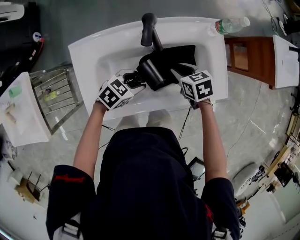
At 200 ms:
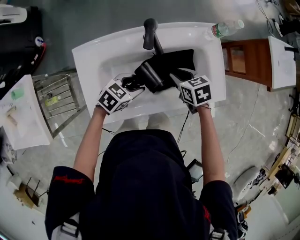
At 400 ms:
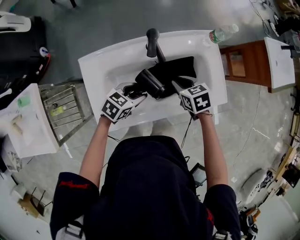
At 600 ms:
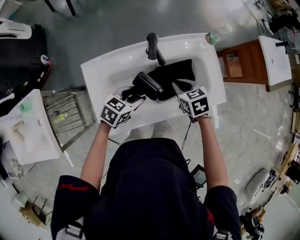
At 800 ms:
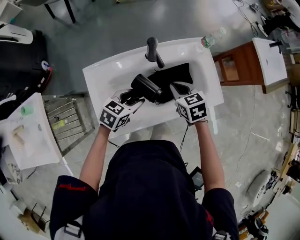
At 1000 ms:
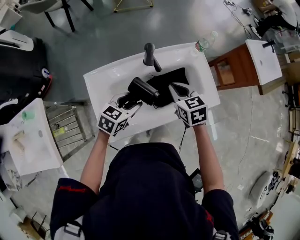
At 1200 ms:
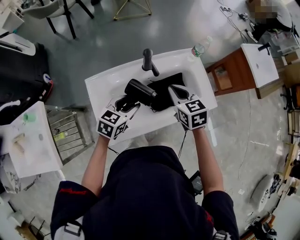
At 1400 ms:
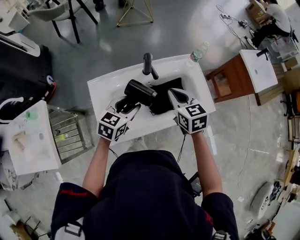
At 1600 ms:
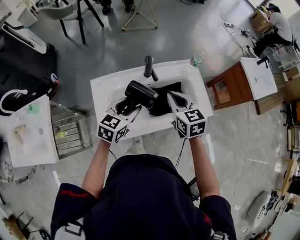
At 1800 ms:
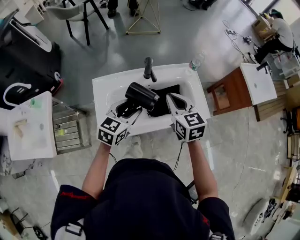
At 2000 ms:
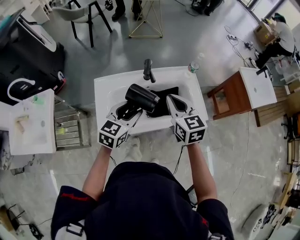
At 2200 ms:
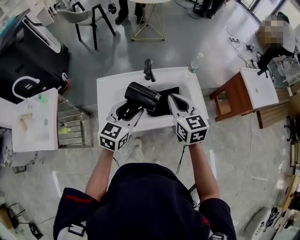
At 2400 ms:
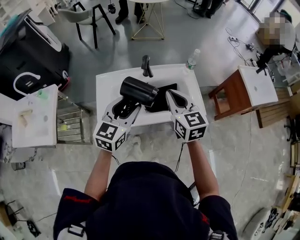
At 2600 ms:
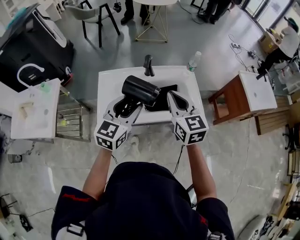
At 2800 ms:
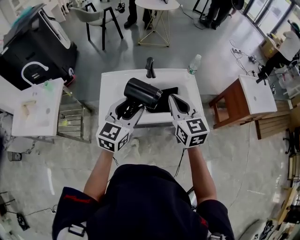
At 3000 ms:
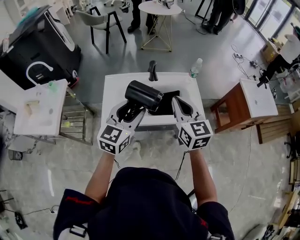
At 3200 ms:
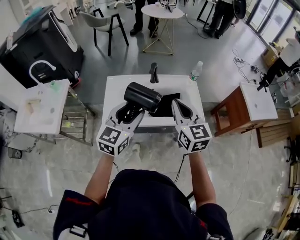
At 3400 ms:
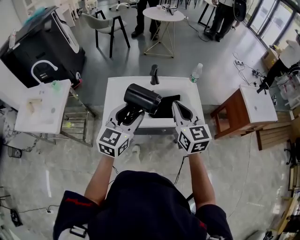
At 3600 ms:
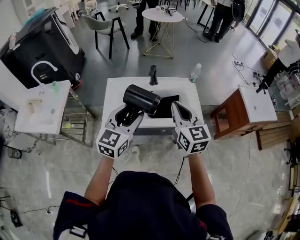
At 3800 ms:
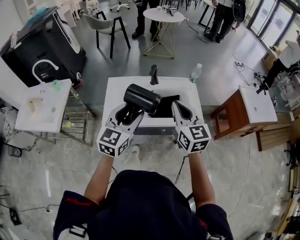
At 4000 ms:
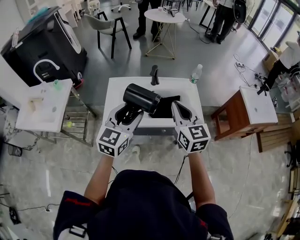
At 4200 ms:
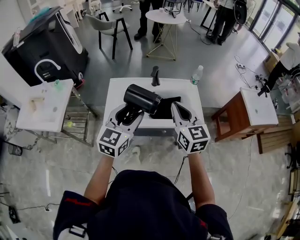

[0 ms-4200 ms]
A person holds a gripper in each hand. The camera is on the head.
0 ms to 1400 ms: The two grippers go some 20 cm upward. The left gripper changes its angle by roughly 30 degrees. Meanwhile the right gripper turns by some 30 degrees.
1400 ms to 2800 ms: The left gripper goes roughly 25 cm upward, backward and to the right, and swivels some 30 degrees; the right gripper is displaced upward and backward by roughly 20 cm, and swivels some 20 degrees.
2800 ms to 4200 ms: The left gripper ends up about 5 cm from where it was.

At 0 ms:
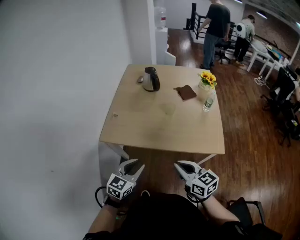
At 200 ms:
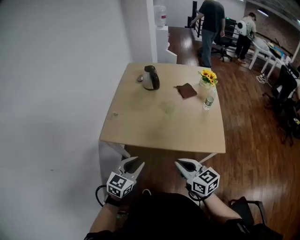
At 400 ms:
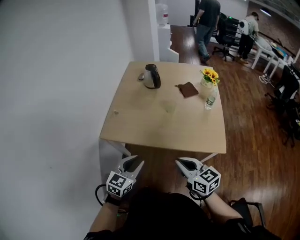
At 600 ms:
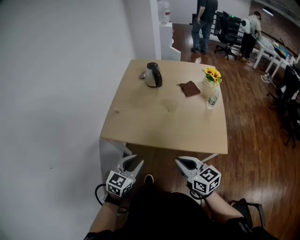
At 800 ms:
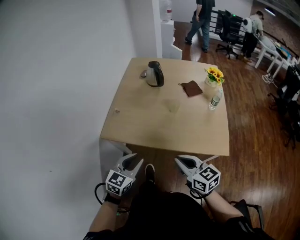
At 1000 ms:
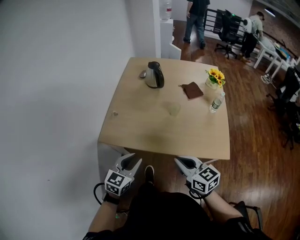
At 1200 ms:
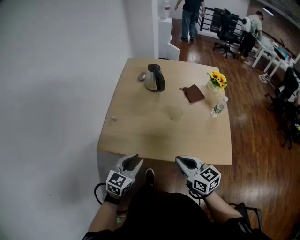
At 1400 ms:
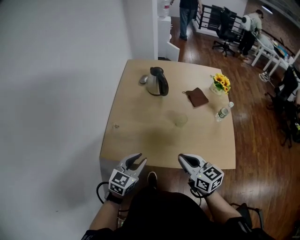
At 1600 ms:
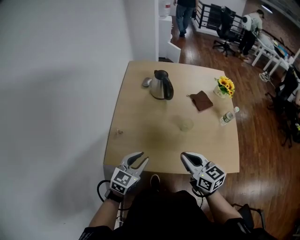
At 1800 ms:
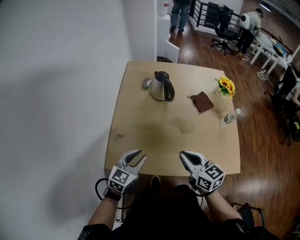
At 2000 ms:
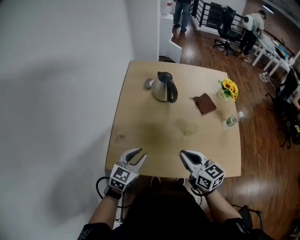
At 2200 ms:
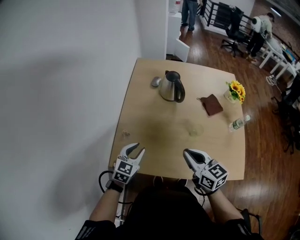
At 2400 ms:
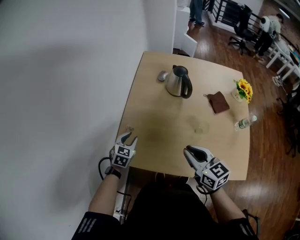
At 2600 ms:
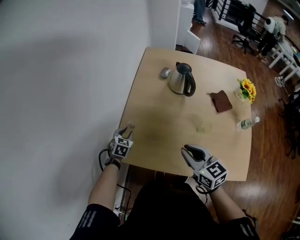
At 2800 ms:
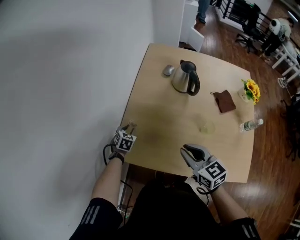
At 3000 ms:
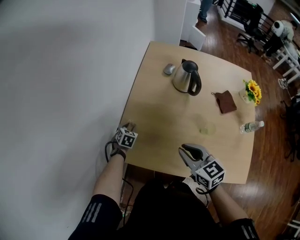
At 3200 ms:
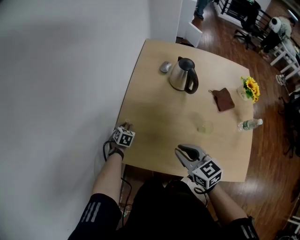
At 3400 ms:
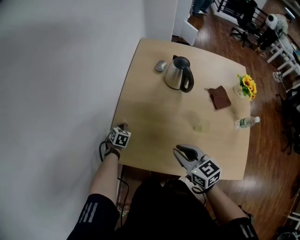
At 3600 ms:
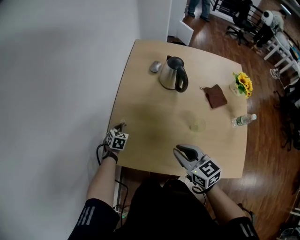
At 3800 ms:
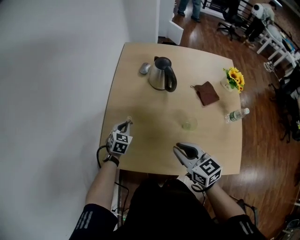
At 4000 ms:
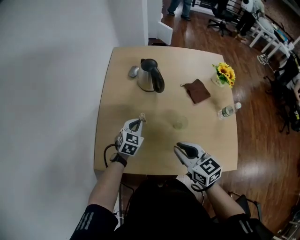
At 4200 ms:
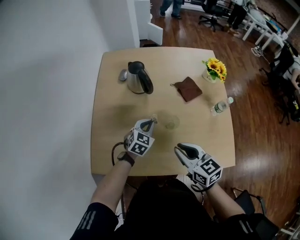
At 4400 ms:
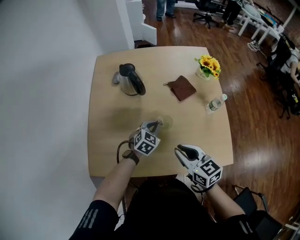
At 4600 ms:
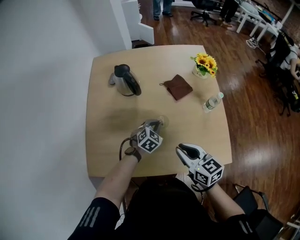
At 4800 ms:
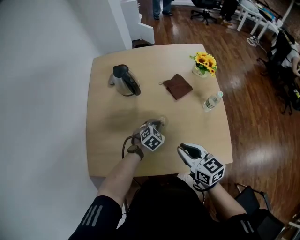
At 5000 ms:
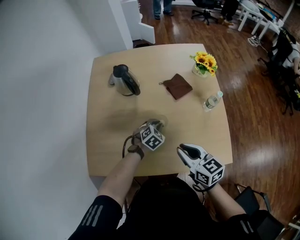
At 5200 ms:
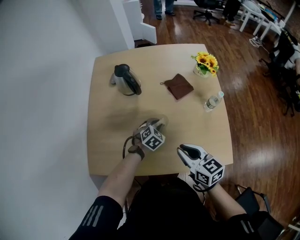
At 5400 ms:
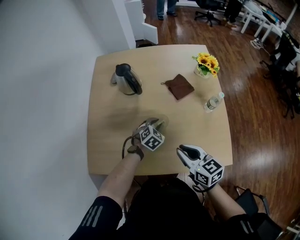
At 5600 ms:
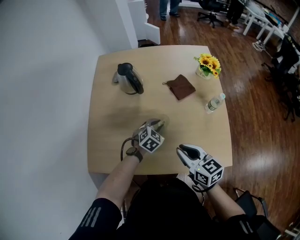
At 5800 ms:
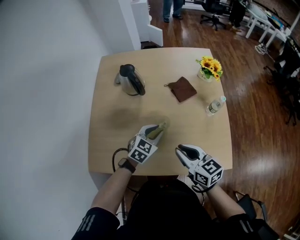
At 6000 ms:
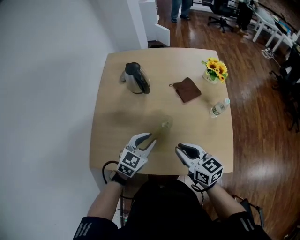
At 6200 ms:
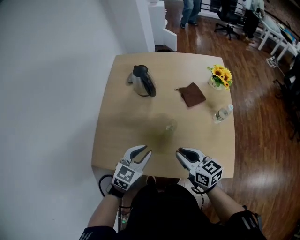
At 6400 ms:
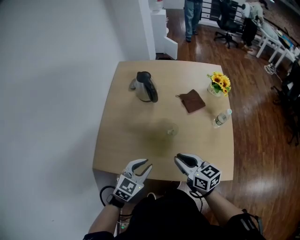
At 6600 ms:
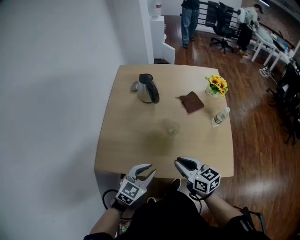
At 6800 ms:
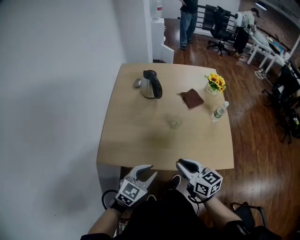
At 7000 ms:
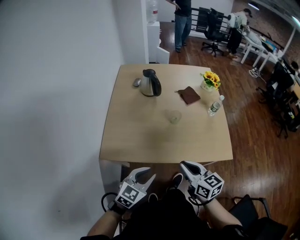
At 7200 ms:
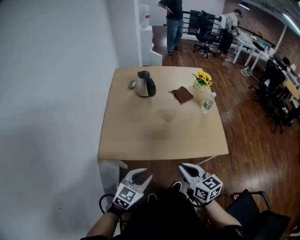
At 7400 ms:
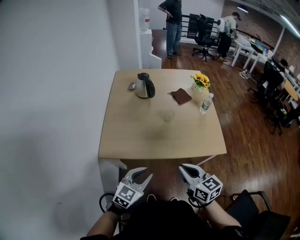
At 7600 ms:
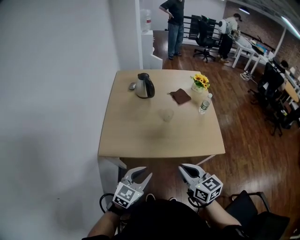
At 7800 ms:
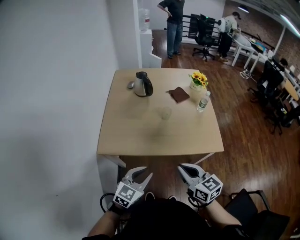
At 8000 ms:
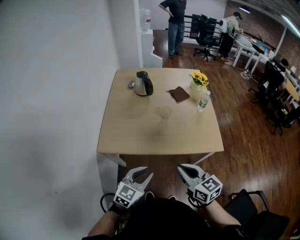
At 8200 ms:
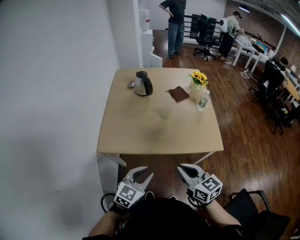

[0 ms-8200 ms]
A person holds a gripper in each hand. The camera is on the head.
0 ms to 1600 ms: The grippers both shift forward by some 25 cm.
1600 ms to 3200 ms: The right gripper ends up roughly 15 cm from where it was. Meanwhile the left gripper moves about 40 cm, and points its fingers approximately 30 degrees further downward.
3200 ms to 5000 ms: The right gripper moves about 25 cm, and turns by some 20 degrees. Meanwhile the left gripper shifts by about 50 cm, and rotates approximately 40 degrees.
5000 ms to 6600 ms: The left gripper heads backward, upward and to the left, covering approximately 30 cm, and swivels roughly 30 degrees; the right gripper heads to the left and backward, covering about 10 cm.
6600 ms to 8200 ms: The two grippers go about 25 cm backward.

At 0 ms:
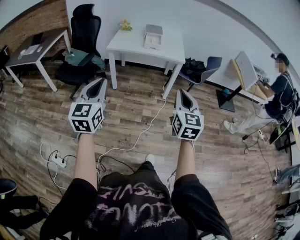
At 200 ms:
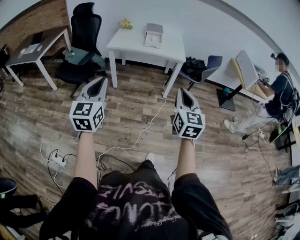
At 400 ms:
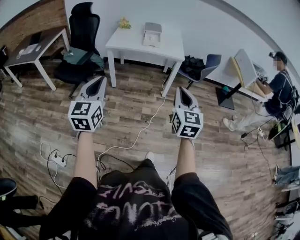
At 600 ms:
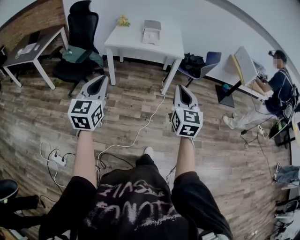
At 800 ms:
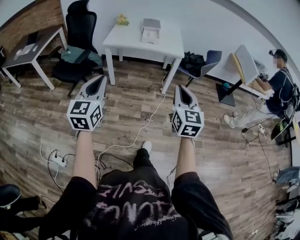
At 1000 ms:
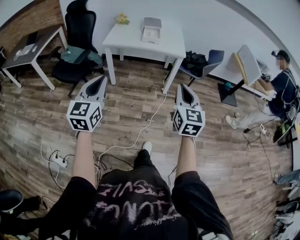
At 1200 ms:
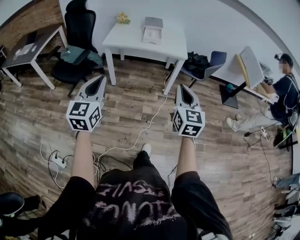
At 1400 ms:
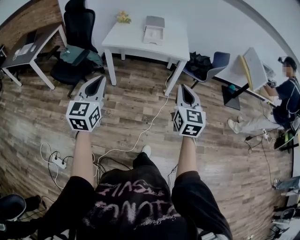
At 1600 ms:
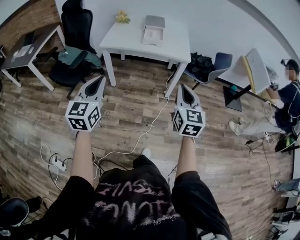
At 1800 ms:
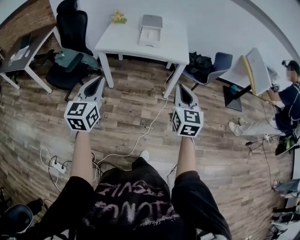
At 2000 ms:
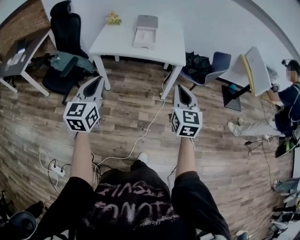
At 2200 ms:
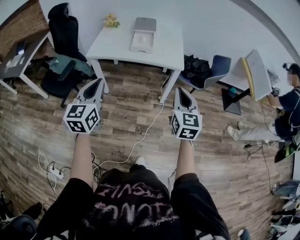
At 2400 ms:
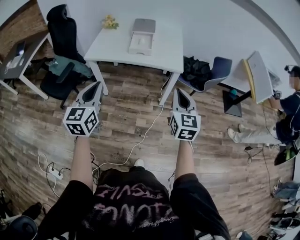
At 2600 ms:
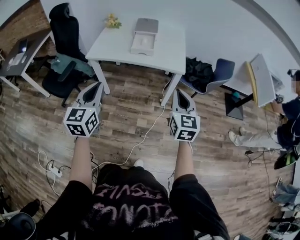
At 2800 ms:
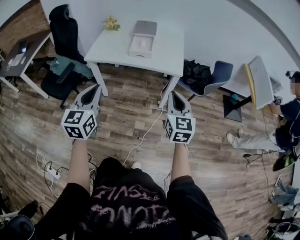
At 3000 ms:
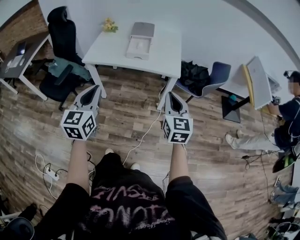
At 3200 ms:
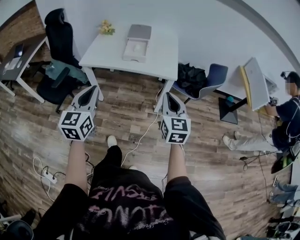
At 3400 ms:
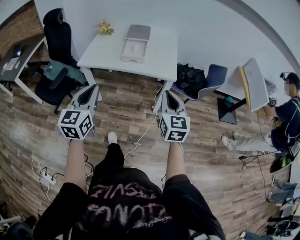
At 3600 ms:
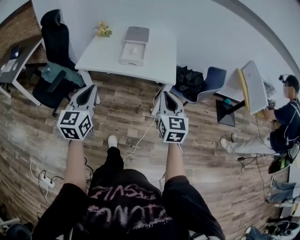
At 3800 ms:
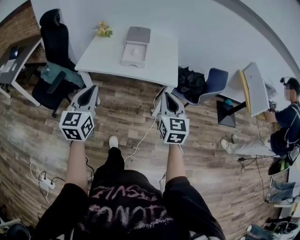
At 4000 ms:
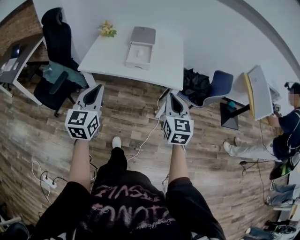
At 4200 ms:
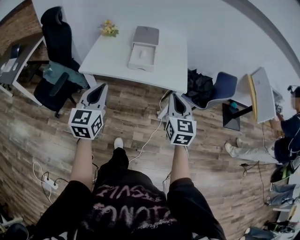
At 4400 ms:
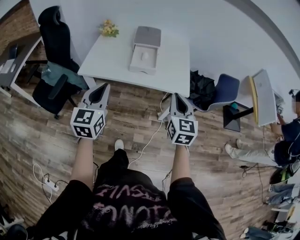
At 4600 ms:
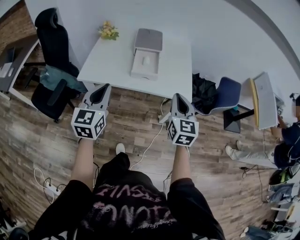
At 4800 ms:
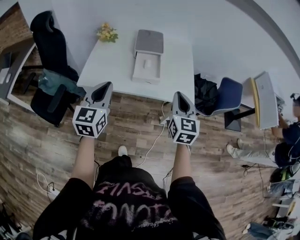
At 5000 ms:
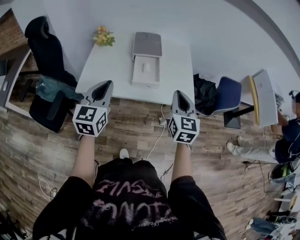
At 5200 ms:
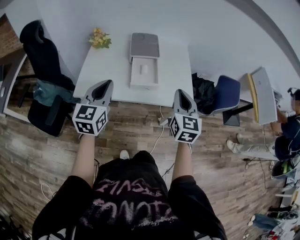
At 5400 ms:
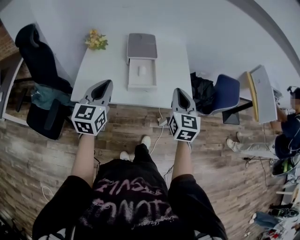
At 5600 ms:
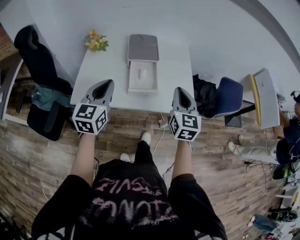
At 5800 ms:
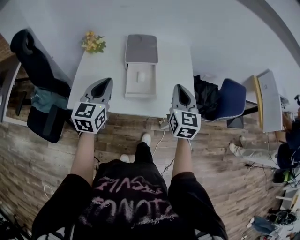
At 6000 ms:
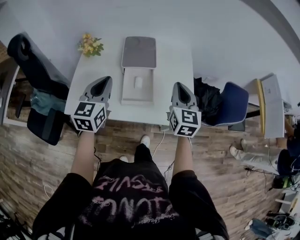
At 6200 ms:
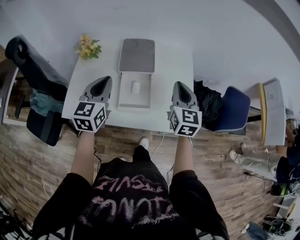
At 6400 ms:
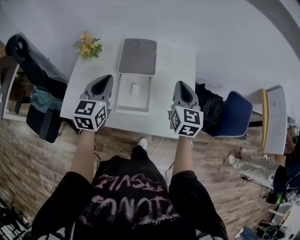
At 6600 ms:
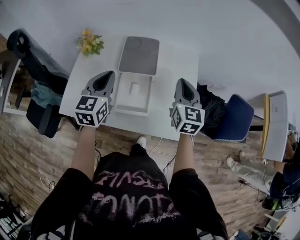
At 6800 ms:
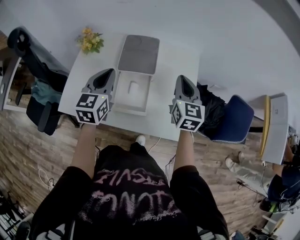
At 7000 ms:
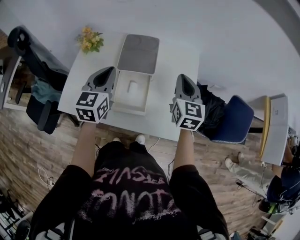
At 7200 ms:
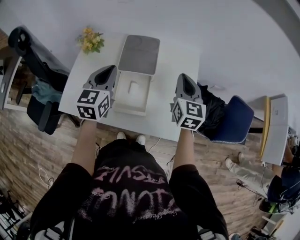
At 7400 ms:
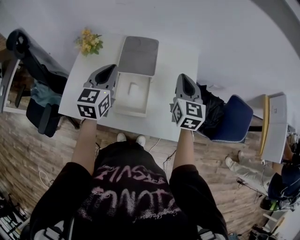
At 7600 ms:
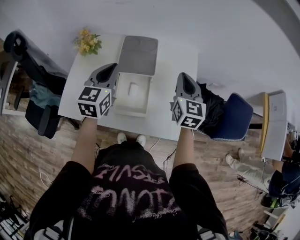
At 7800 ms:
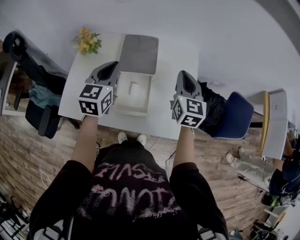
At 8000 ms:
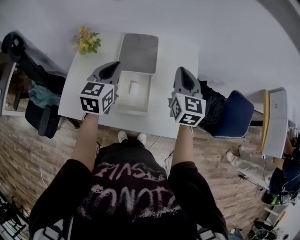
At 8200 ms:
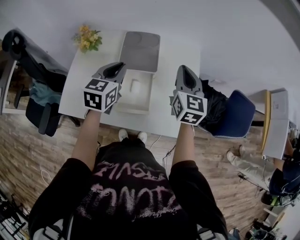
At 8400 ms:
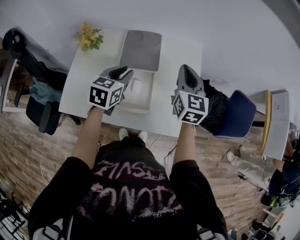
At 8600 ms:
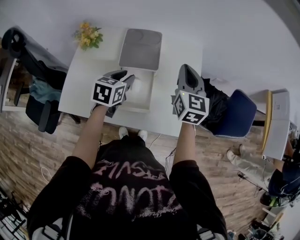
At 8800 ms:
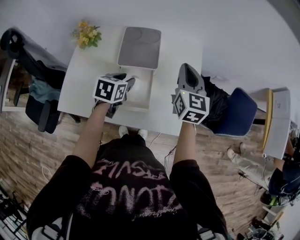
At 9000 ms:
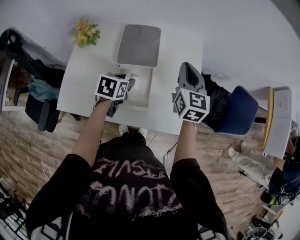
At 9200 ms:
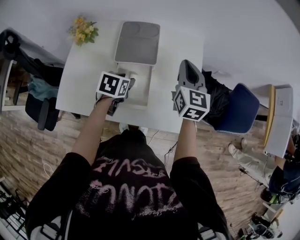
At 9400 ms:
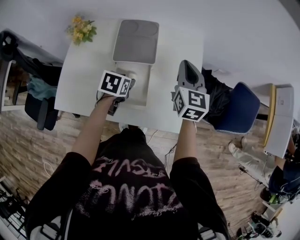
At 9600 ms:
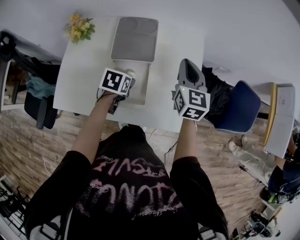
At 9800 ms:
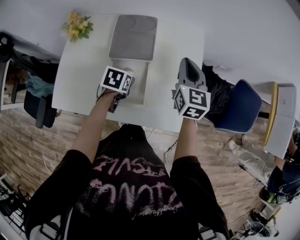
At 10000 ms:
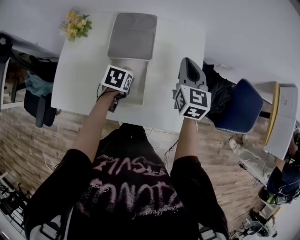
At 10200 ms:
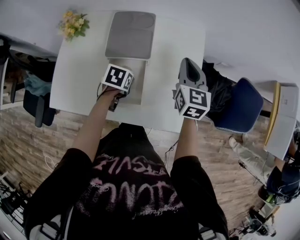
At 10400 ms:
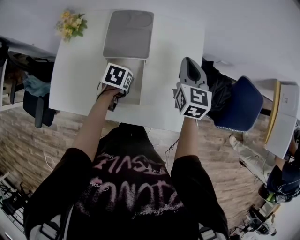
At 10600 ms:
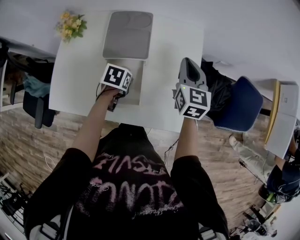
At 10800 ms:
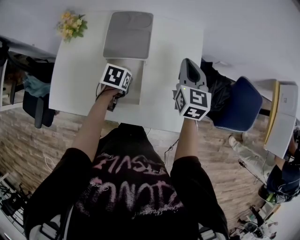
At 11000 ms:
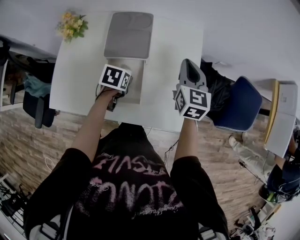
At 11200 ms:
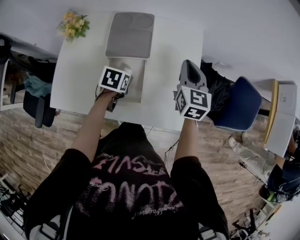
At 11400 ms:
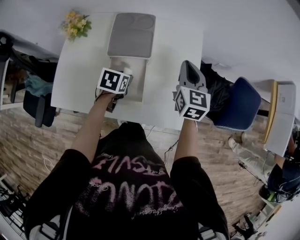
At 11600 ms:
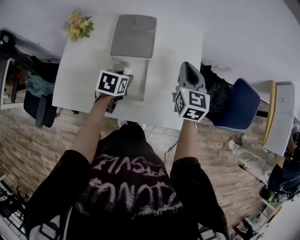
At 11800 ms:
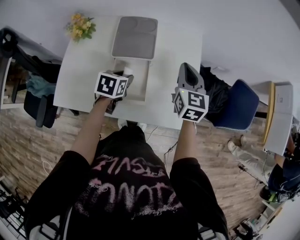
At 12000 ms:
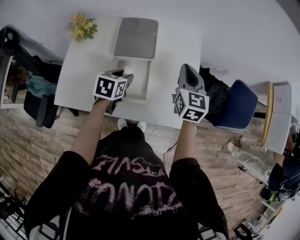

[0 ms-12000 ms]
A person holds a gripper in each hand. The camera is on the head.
0 ms to 1600 ms: The two grippers go about 20 cm forward.
1600 ms to 3000 ms: The grippers both shift forward and to the right by some 20 cm.
3000 ms to 4400 ms: Both grippers travel together forward, about 20 cm.
4400 ms to 6000 ms: The two grippers go approximately 30 cm forward.
6000 ms to 7600 ms: The two grippers go approximately 15 cm forward.
7600 ms to 9000 ms: The left gripper goes about 15 cm downward, tips its fingers downward by some 40 degrees, and opens up.
9000 ms to 10400 ms: Both grippers travel together downward, roughly 10 cm. The left gripper rotates approximately 20 degrees.
10400 ms to 12000 ms: The right gripper moves backward, approximately 5 cm; the left gripper moves upward, approximately 10 cm, and turns by roughly 20 degrees.
